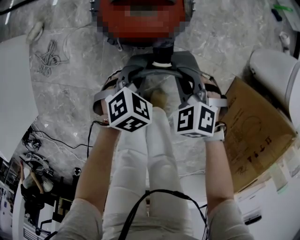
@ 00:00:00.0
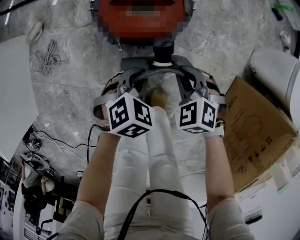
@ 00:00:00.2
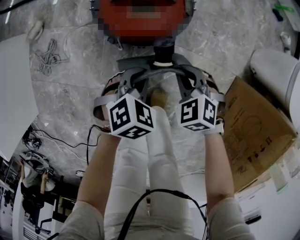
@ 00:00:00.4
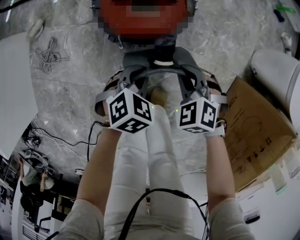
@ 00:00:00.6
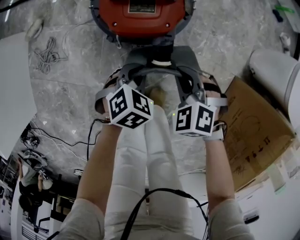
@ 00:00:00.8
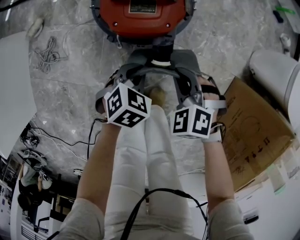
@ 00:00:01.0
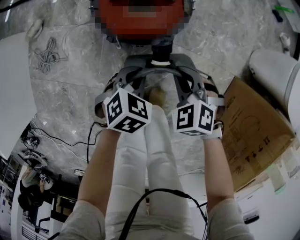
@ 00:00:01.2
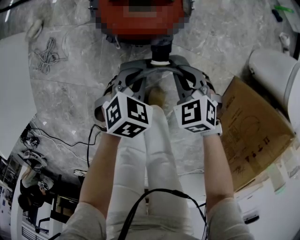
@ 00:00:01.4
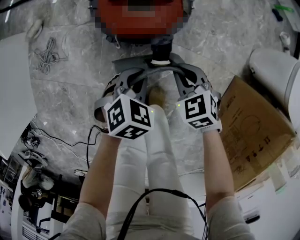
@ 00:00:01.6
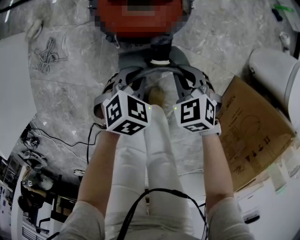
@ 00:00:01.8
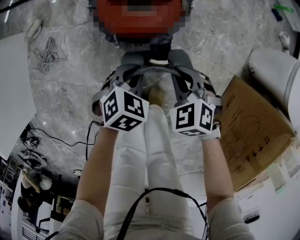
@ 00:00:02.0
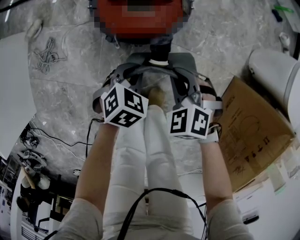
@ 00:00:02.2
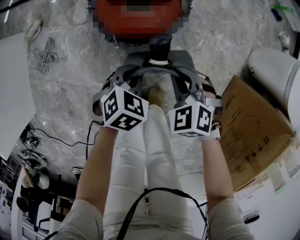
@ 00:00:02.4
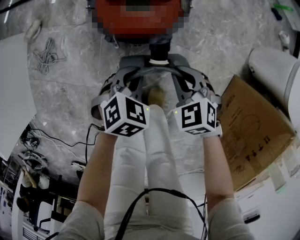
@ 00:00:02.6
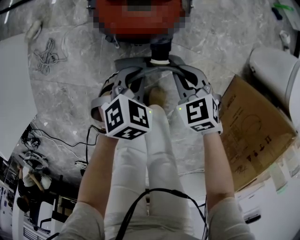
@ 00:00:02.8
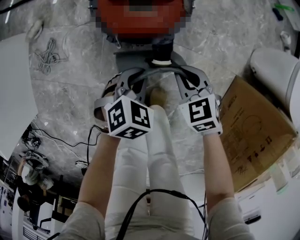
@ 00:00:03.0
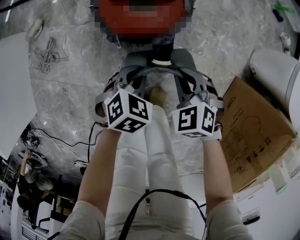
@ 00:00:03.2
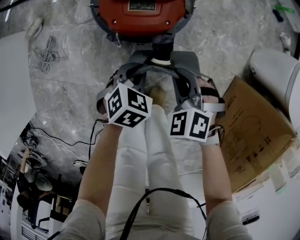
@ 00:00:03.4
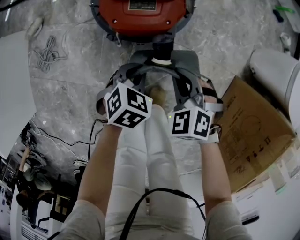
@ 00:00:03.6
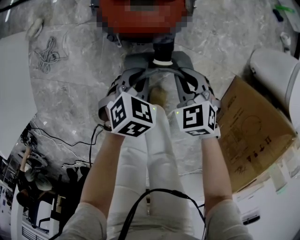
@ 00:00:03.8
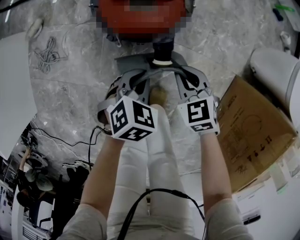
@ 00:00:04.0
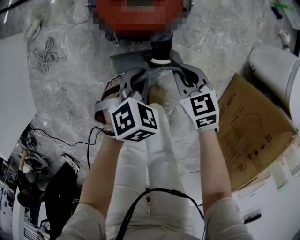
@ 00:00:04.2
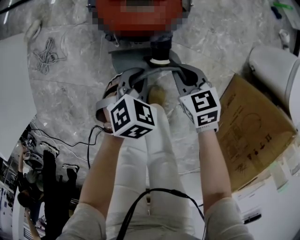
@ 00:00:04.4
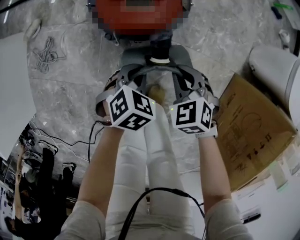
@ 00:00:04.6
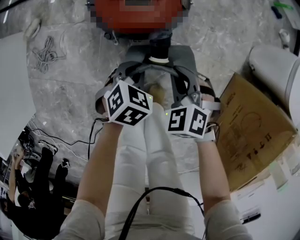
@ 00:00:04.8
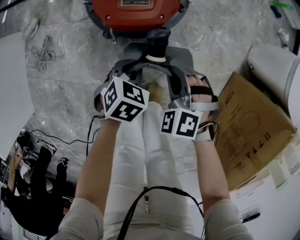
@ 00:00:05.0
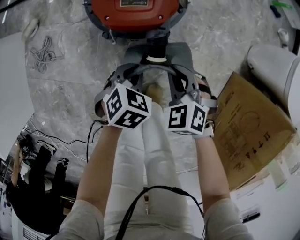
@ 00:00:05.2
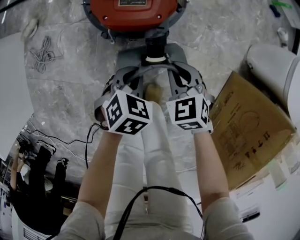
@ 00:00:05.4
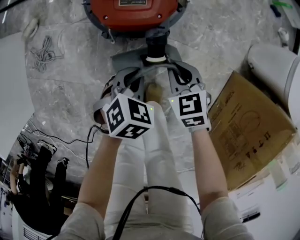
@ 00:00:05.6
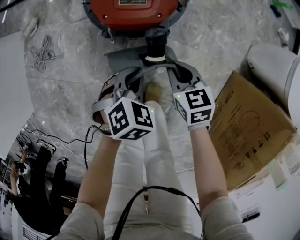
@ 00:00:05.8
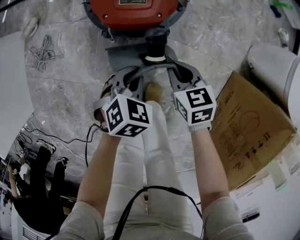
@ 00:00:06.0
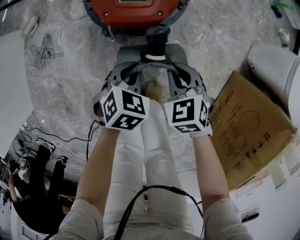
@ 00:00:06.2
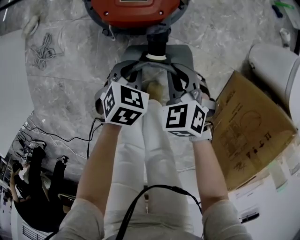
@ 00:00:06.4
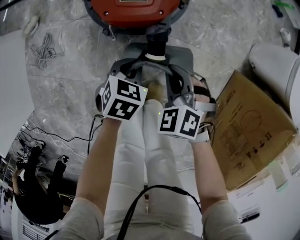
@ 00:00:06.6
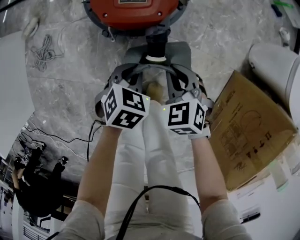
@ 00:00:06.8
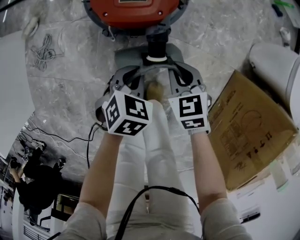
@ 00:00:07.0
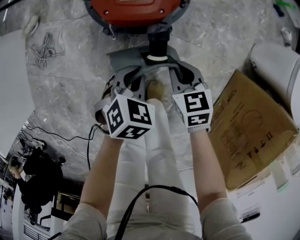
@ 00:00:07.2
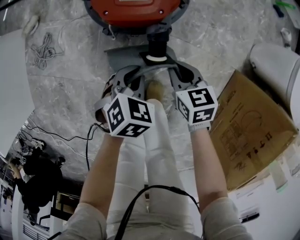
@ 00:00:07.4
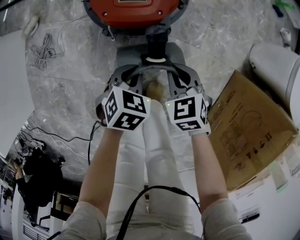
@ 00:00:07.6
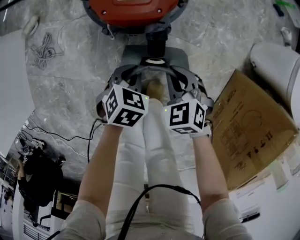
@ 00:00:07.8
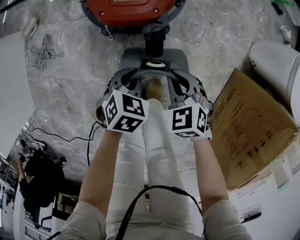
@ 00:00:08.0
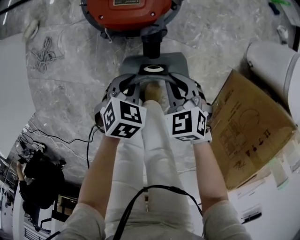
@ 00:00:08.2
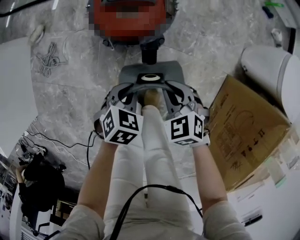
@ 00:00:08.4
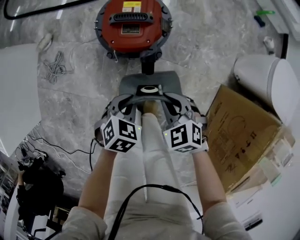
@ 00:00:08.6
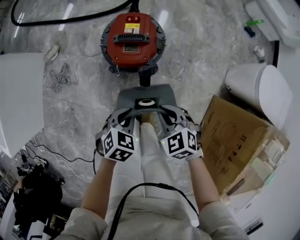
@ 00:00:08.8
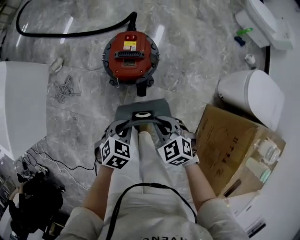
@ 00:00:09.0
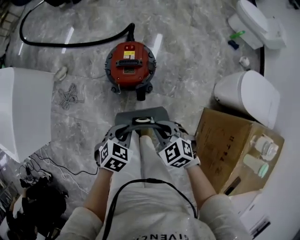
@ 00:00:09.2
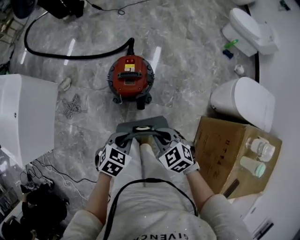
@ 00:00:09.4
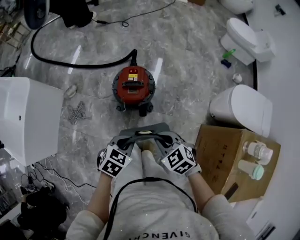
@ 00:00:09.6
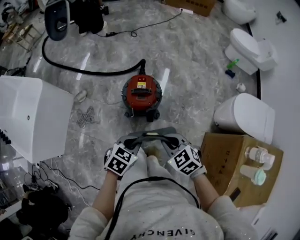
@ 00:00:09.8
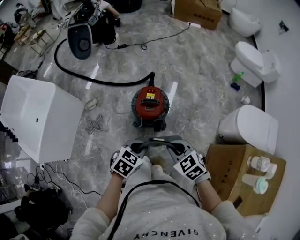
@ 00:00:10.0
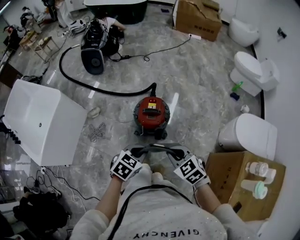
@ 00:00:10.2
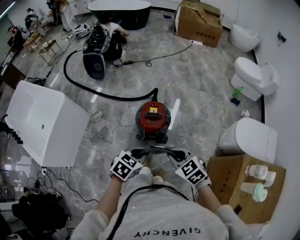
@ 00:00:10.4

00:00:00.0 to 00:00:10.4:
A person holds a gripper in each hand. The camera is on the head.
00:00:00.0 to 00:00:01.4: The grippers make only small movements.
00:00:01.4 to 00:00:03.0: The grippers make only small movements.
00:00:07.4 to 00:00:09.0: The two grippers go some 20 cm upward. The right gripper swivels approximately 40 degrees.
00:00:09.0 to 00:00:10.4: The grippers both shift upward by roughly 25 cm.

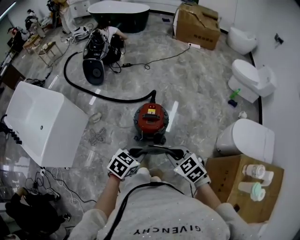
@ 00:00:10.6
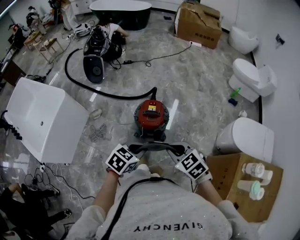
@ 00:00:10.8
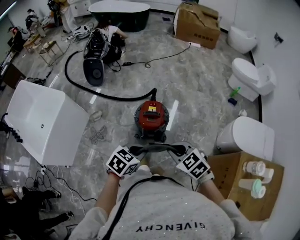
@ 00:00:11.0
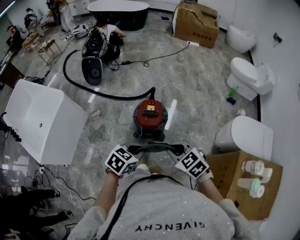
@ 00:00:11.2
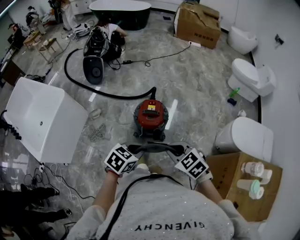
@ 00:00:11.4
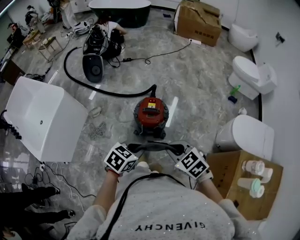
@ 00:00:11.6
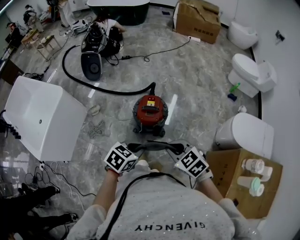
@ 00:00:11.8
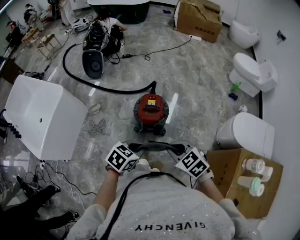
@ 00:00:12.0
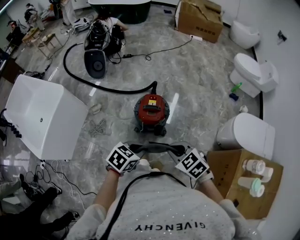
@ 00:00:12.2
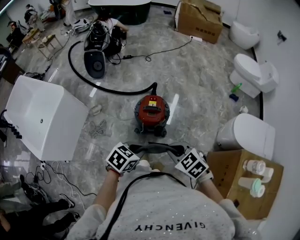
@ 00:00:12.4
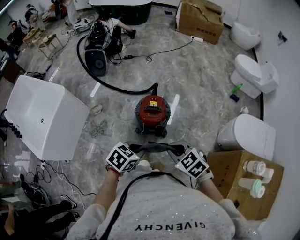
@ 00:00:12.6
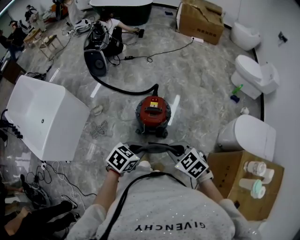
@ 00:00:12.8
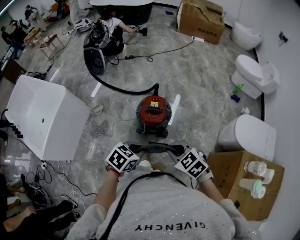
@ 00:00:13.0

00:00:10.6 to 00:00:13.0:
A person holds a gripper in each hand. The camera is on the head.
00:00:10.6 to 00:00:13.0: The grippers move only a little.

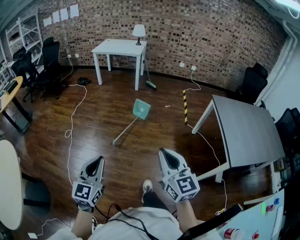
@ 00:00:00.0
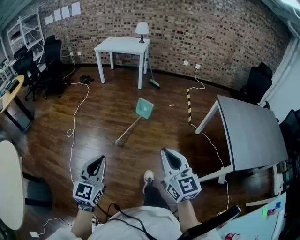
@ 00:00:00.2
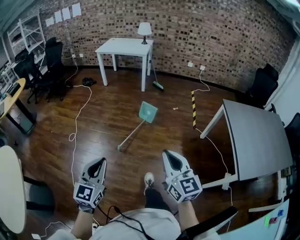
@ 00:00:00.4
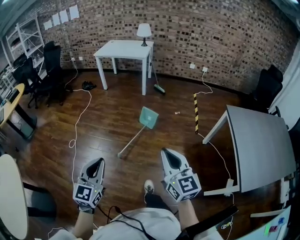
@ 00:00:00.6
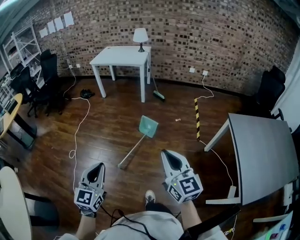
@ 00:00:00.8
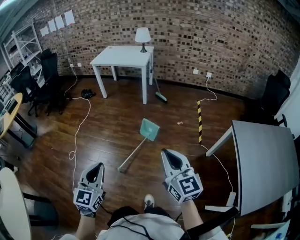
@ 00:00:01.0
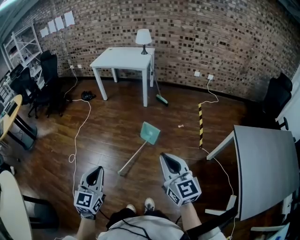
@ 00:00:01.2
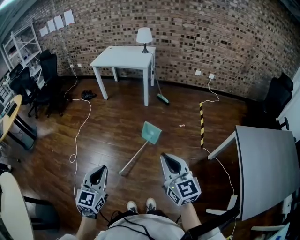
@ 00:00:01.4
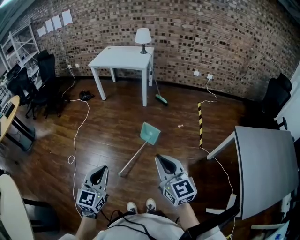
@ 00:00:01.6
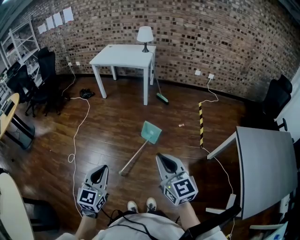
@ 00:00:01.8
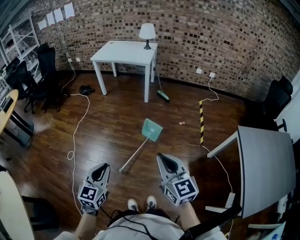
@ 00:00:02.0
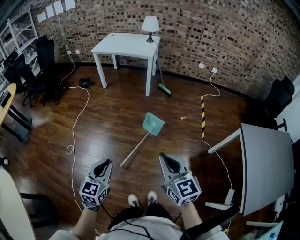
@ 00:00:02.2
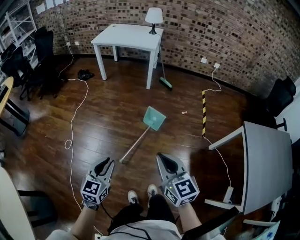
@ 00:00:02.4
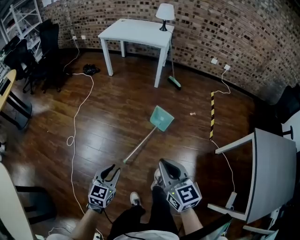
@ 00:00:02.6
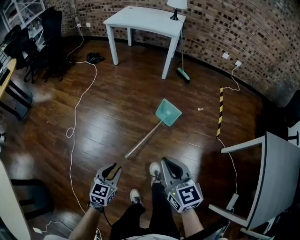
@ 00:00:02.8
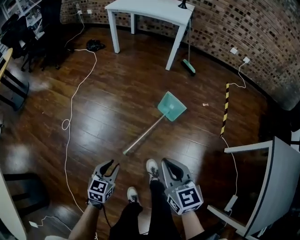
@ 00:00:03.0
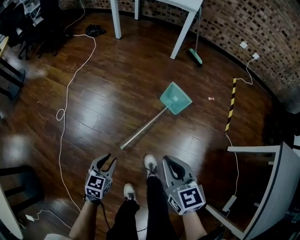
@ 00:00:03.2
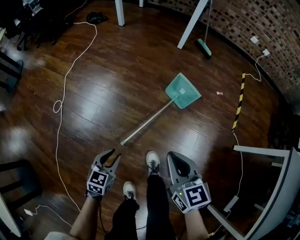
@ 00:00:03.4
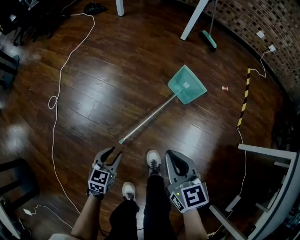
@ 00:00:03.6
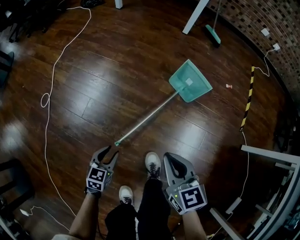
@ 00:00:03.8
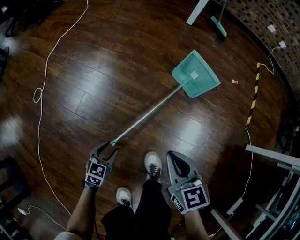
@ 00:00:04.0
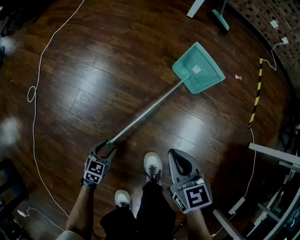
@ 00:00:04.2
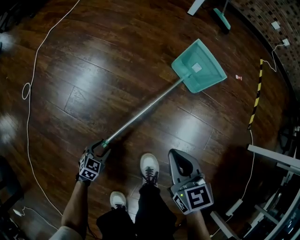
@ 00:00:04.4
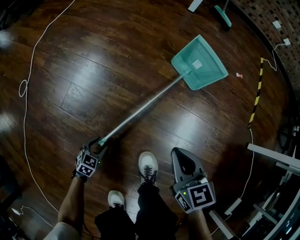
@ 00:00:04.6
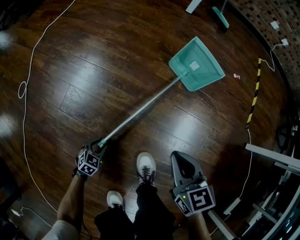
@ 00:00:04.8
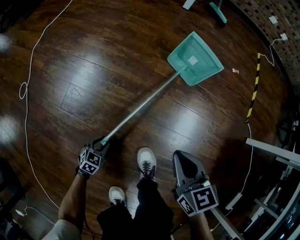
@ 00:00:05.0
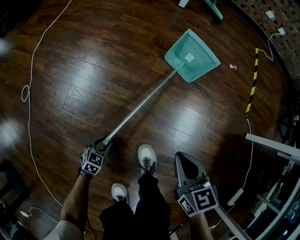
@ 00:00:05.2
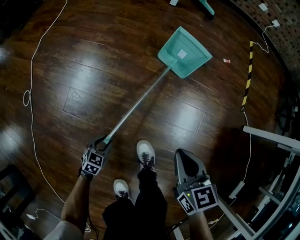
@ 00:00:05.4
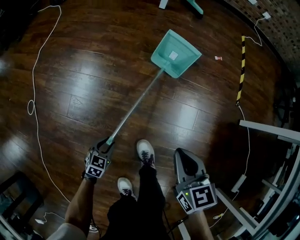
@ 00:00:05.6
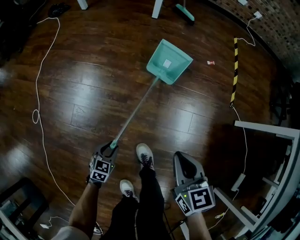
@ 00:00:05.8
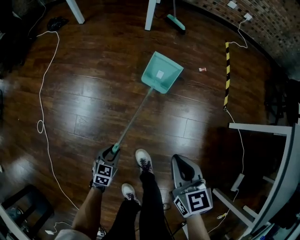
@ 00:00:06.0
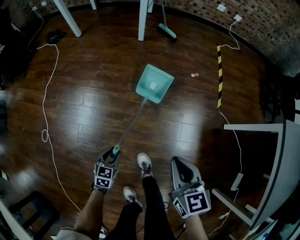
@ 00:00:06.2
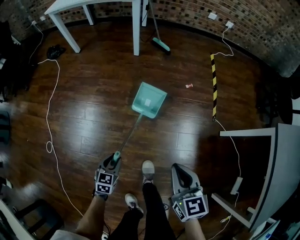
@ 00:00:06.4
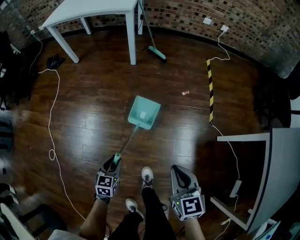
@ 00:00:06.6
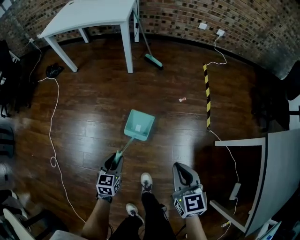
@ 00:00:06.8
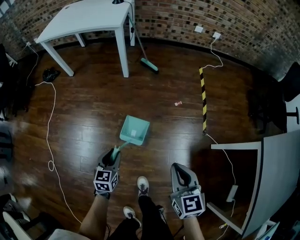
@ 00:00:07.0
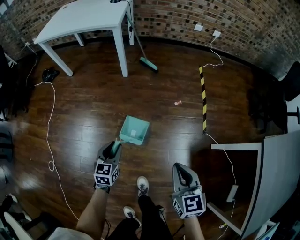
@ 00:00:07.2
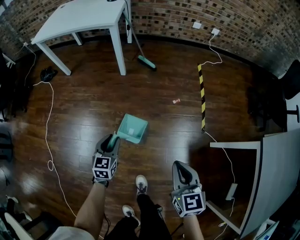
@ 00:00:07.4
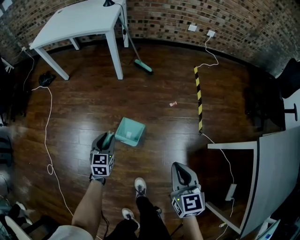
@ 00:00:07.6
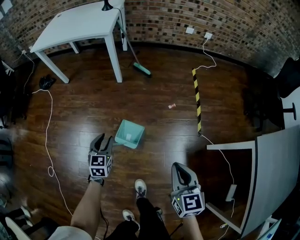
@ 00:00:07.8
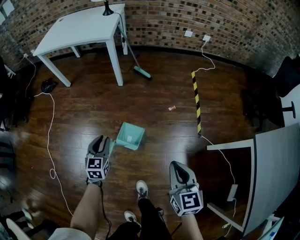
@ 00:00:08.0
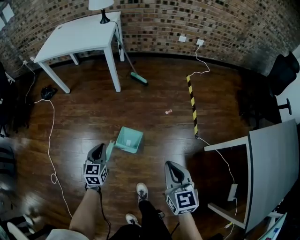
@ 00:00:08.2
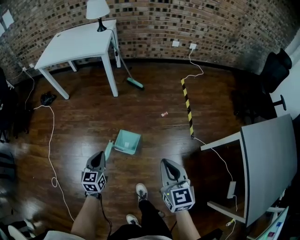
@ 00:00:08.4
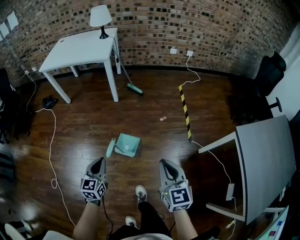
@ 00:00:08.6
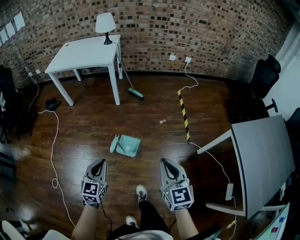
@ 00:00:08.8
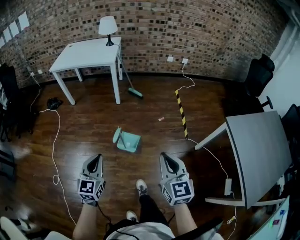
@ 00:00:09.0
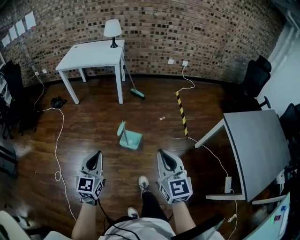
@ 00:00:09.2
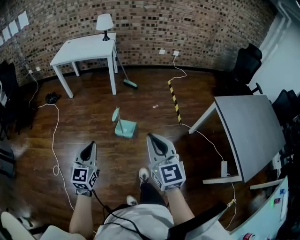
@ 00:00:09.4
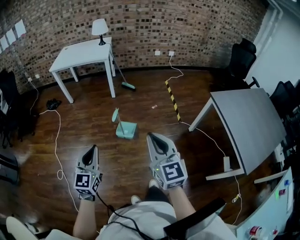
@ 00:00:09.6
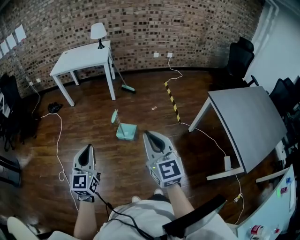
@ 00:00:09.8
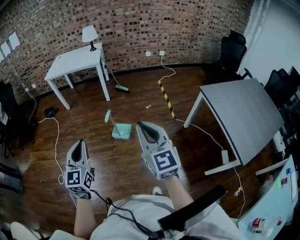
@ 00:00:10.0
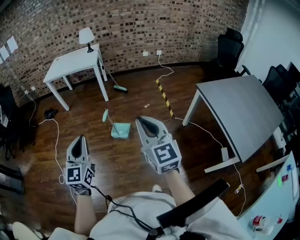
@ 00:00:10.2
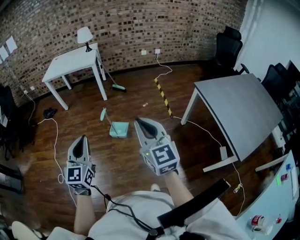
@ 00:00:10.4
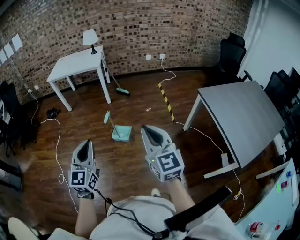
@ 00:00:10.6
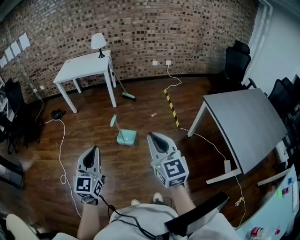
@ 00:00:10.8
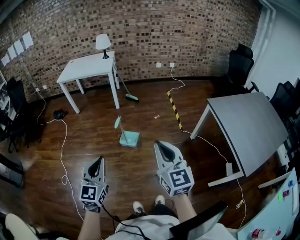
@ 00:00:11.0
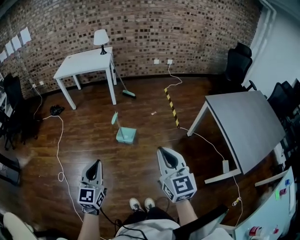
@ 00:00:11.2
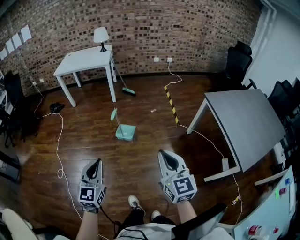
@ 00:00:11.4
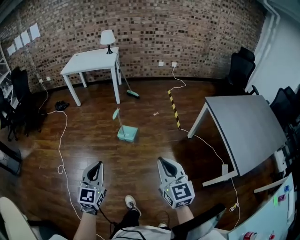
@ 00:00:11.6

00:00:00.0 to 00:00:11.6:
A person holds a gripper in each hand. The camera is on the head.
00:00:00.0 to 00:00:01.4: The two grippers go roughly 40 cm forward.
00:00:01.4 to 00:00:02.8: The left gripper heads downward, covering about 25 cm, changes its angle by roughly 20 degrees, and opens, while the right gripper shifts about 25 cm downward, to the left and forward.
00:00:02.8 to 00:00:04.4: The grippers both shift downward by about 60 cm. The left gripper changes its angle by about 20 degrees, and opens up.
00:00:04.4 to 00:00:05.8: Both grippers move upward and to the right, some 20 cm.
00:00:05.8 to 00:00:07.2: The left gripper goes about 40 cm upward and forward; the right gripper is displaced upward, forward and to the right by roughly 30 cm.
00:00:07.2 to 00:00:08.8: The two grippers go some 25 cm upward and backward. The left gripper closes.
00:00:08.8 to 00:00:10.2: Both grippers move backward and upward, about 30 cm. The left gripper turns by some 20 degrees.
00:00:10.2 to 00:00:11.6: The grippers both shift backward and downward by approximately 20 cm.
